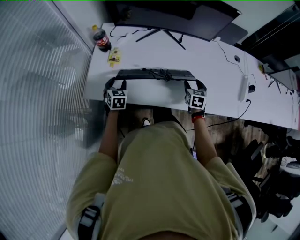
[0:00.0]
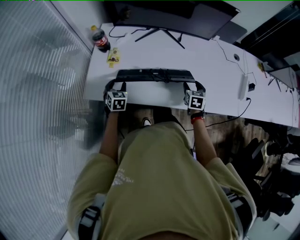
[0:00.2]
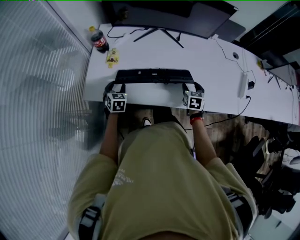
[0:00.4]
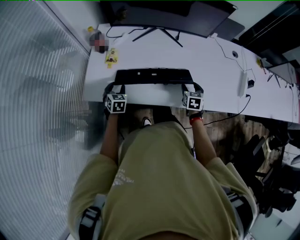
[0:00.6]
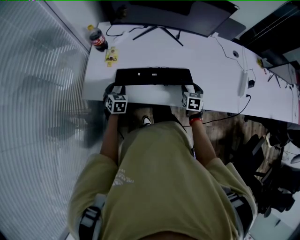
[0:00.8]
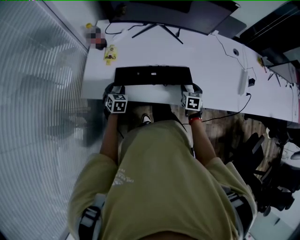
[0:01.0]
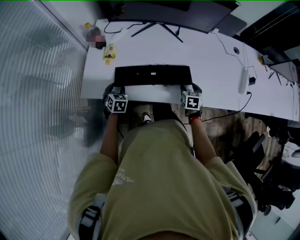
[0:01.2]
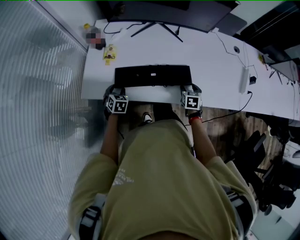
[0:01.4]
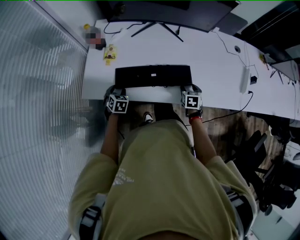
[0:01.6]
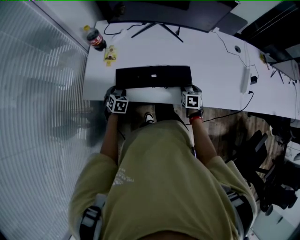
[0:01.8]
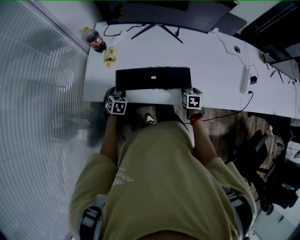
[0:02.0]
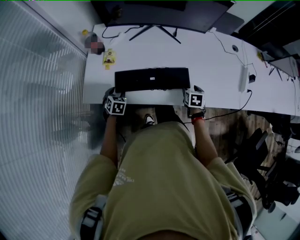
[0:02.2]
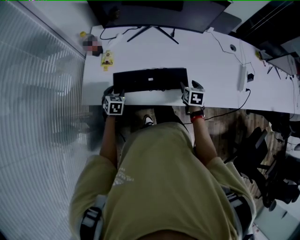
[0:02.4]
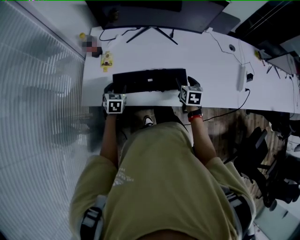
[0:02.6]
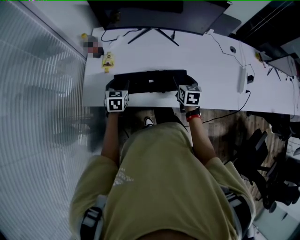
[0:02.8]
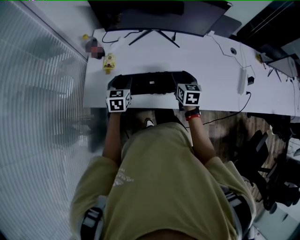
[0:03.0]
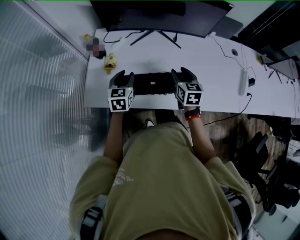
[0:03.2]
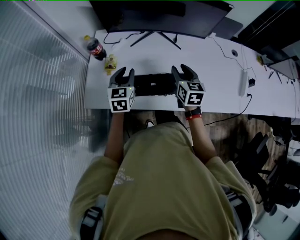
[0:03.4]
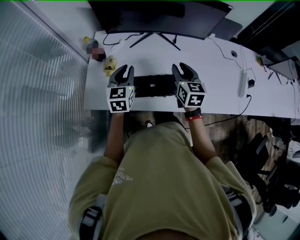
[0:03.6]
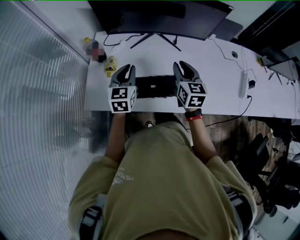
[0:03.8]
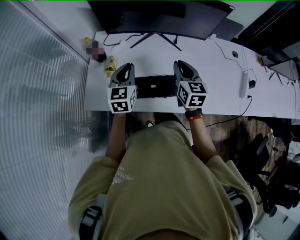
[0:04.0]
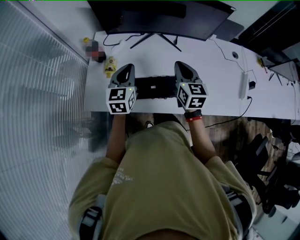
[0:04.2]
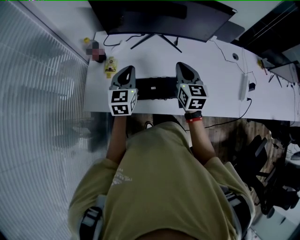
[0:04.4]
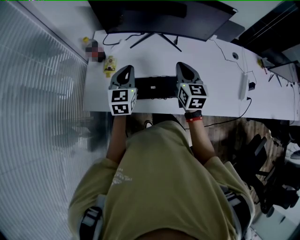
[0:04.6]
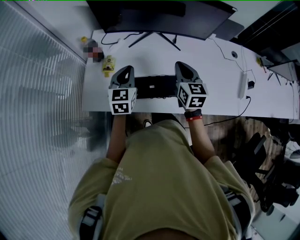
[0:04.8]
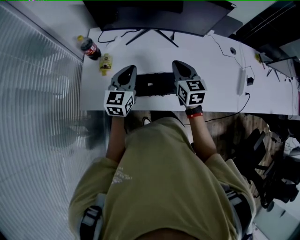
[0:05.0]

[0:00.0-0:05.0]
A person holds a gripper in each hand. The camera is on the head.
0:00.0 to 0:01.6: Both grippers travel together downward, roughly 10 cm.
0:01.6 to 0:03.4: The left gripper moves upward and forward, approximately 25 cm, and tilts its fingers roughly 30 degrees upward, while the right gripper goes some 25 cm upward and to the left, and swivels about 30 degrees.
0:03.4 to 0:05.0: The right gripper closes up.

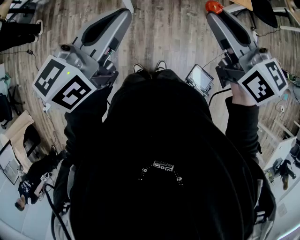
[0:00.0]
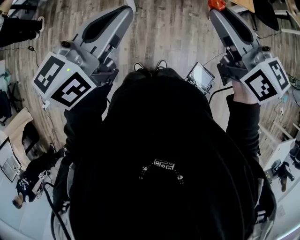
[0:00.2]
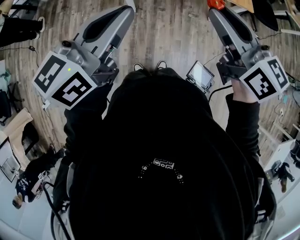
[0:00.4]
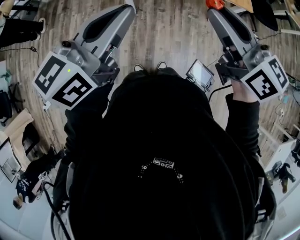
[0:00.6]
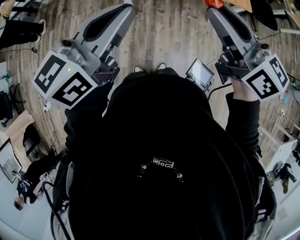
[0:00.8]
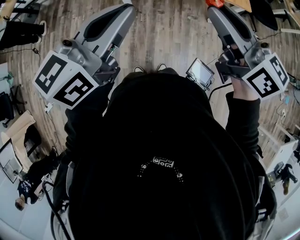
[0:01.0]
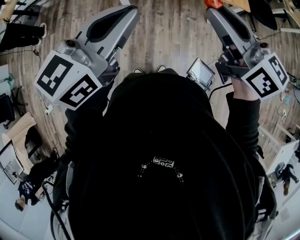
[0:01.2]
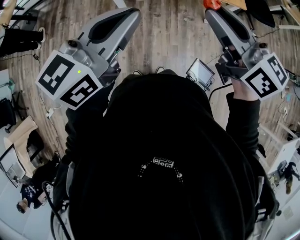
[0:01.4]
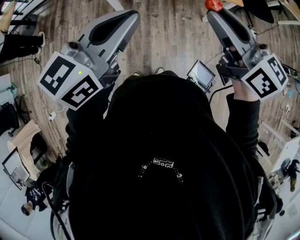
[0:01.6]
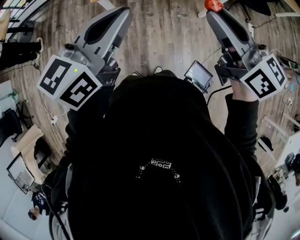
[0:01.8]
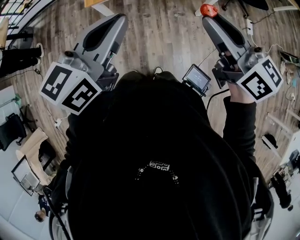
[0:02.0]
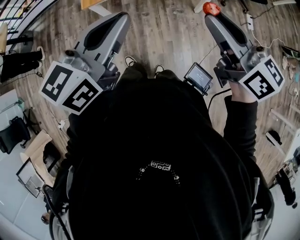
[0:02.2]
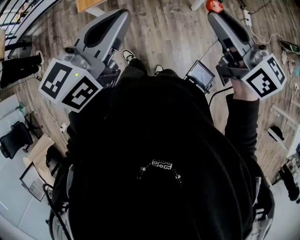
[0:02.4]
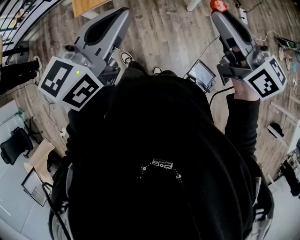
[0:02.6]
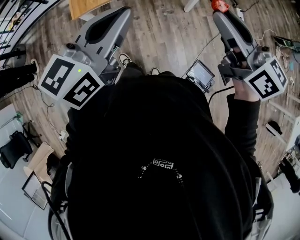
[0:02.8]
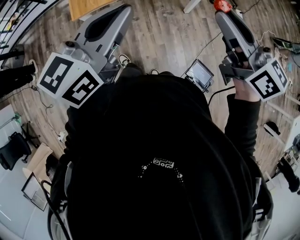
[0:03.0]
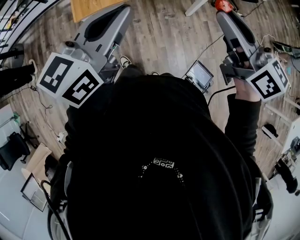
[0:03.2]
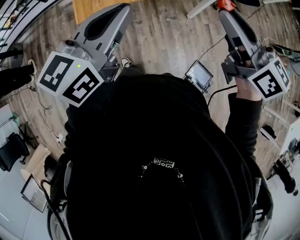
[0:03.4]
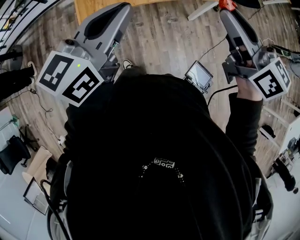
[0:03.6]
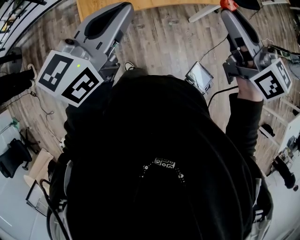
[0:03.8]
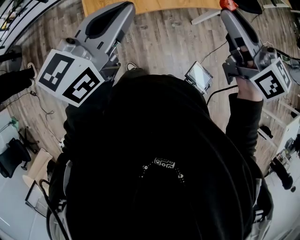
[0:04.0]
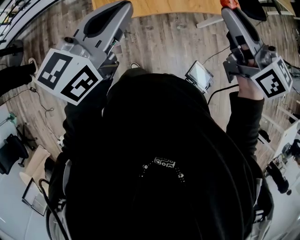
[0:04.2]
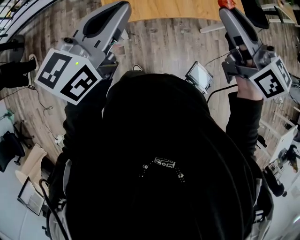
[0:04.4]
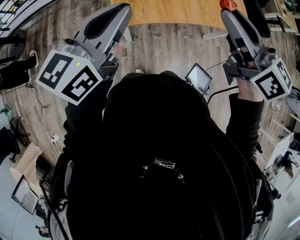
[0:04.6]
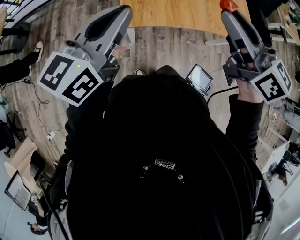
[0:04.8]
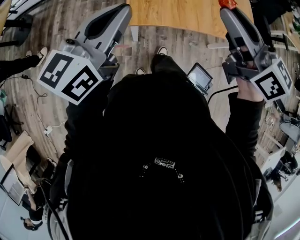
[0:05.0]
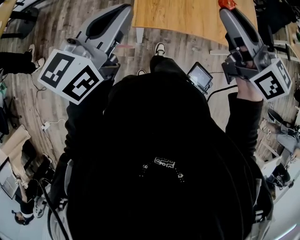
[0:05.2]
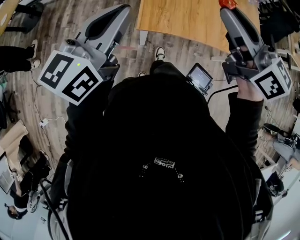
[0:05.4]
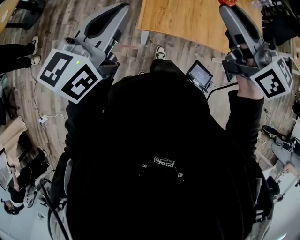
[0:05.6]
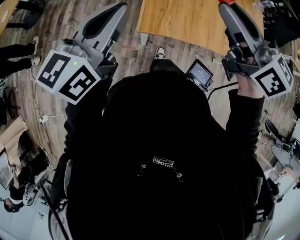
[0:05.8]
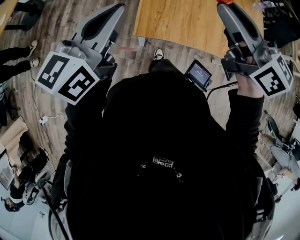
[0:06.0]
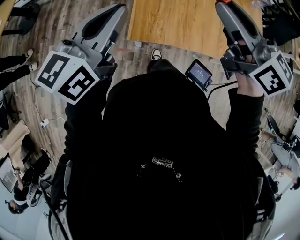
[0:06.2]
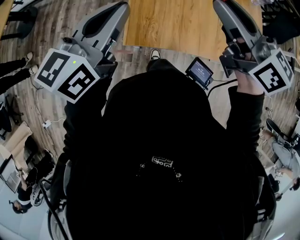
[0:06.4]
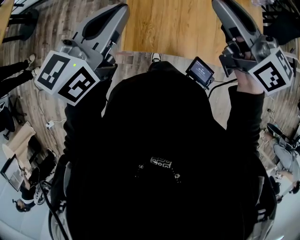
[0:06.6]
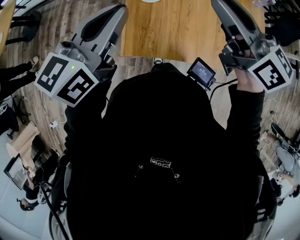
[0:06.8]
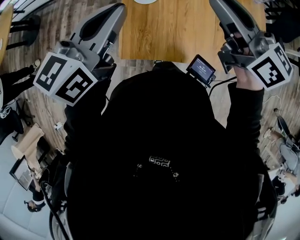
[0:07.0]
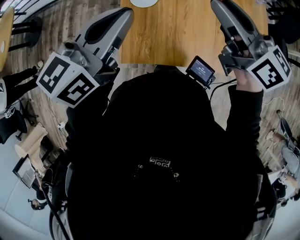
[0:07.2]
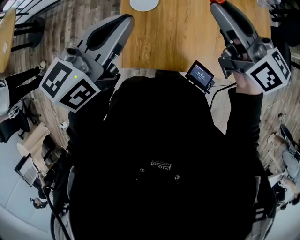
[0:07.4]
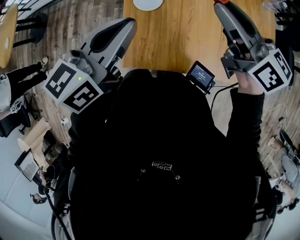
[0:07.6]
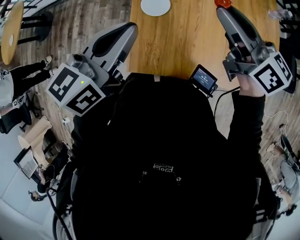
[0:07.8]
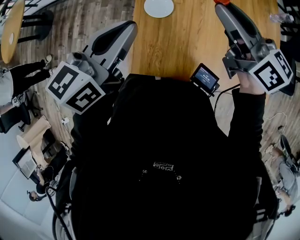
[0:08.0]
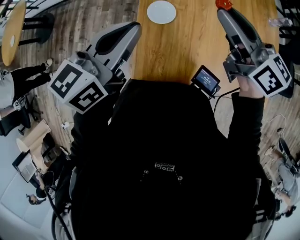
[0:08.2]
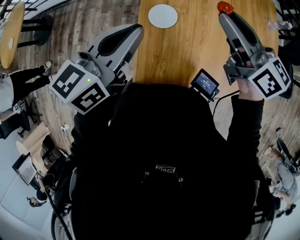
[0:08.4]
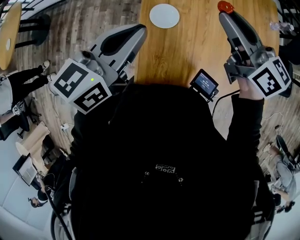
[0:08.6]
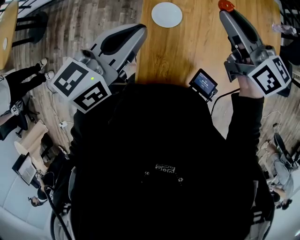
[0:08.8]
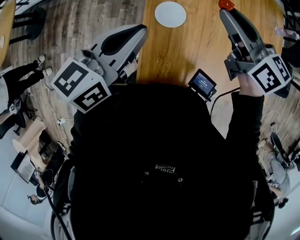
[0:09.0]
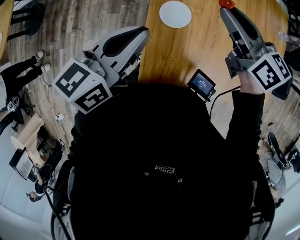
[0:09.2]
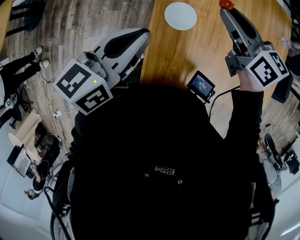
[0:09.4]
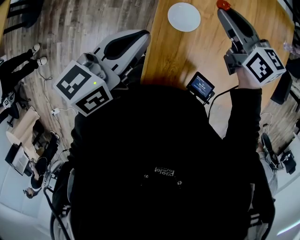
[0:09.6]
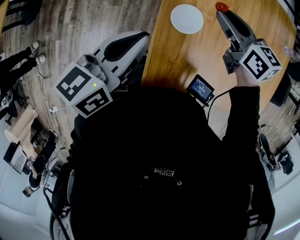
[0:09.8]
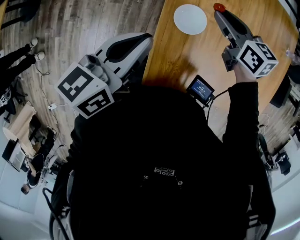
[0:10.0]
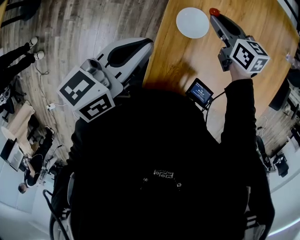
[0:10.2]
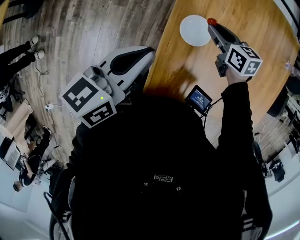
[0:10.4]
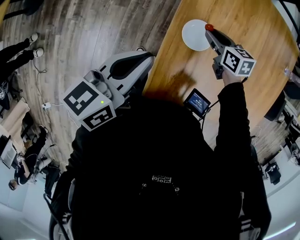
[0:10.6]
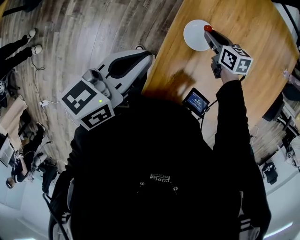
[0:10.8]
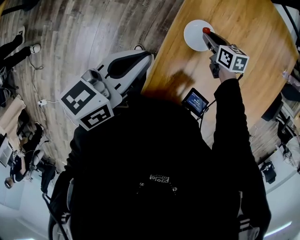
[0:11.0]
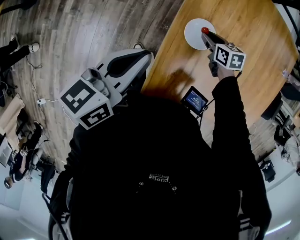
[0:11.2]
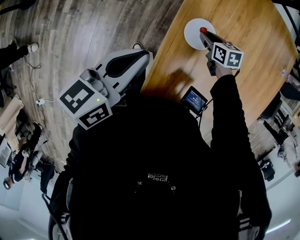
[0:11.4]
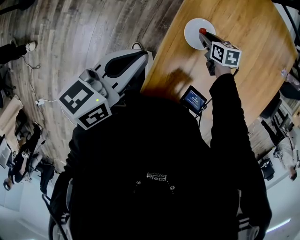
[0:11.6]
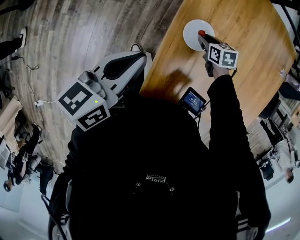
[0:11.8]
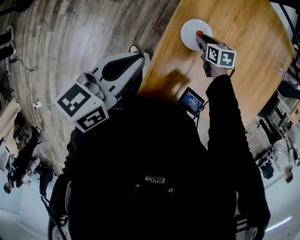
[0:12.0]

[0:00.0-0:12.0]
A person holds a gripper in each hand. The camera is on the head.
0:00.0 to 0:01.6: The grippers both shift to the right by approximately 10 cm.
0:01.6 to 0:03.0: The right gripper travels to the right by about 10 cm; the left gripper goes some 10 cm to the right and forward.
0:03.0 to 0:04.4: The grippers both shift to the left and forward by about 30 cm.
0:04.4 to 0:06.0: Both grippers move to the right, about 10 cm.
0:06.0 to 0:07.6: The right gripper is displaced to the right, forward and downward by some 10 cm, while the left gripper moves to the right, approximately 10 cm.
0:07.6 to 0:09.0: The right gripper shifts by about 5 cm.
0:09.0 to 0:10.4: The right gripper travels downward by some 20 cm, and rotates roughly 30 degrees. Meanwhile the left gripper is displaced downward by approximately 5 cm.
0:10.4 to 0:12.0: The right gripper shifts some 15 cm downward, and swivels some 20 degrees.

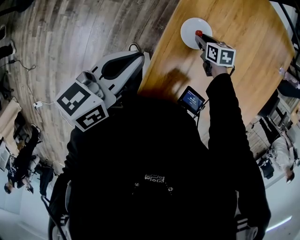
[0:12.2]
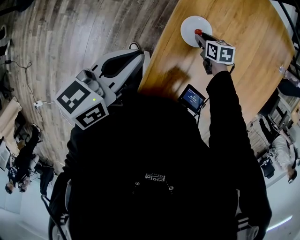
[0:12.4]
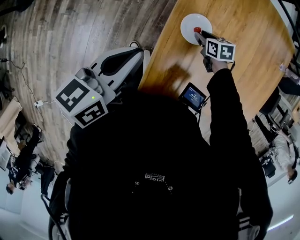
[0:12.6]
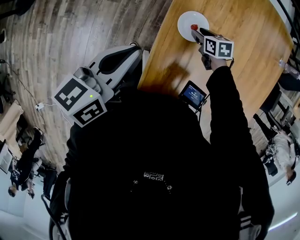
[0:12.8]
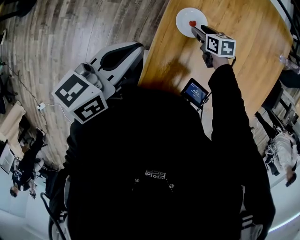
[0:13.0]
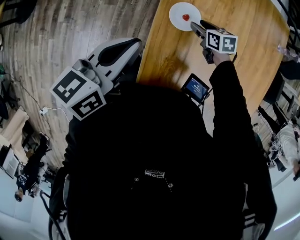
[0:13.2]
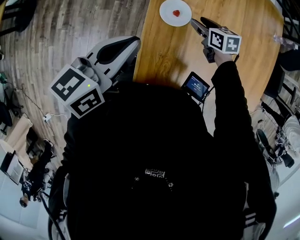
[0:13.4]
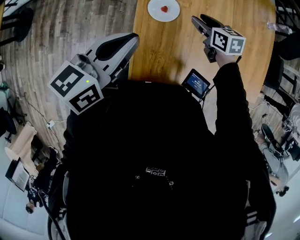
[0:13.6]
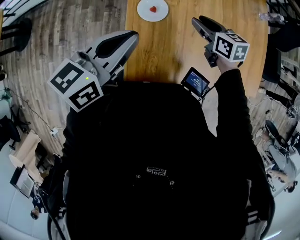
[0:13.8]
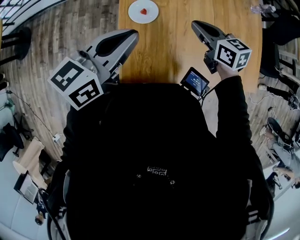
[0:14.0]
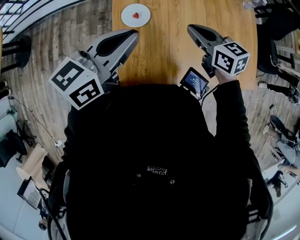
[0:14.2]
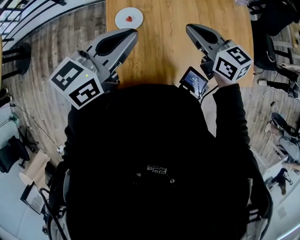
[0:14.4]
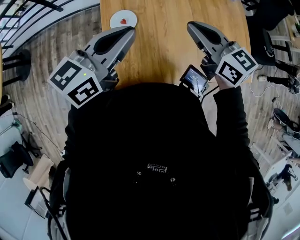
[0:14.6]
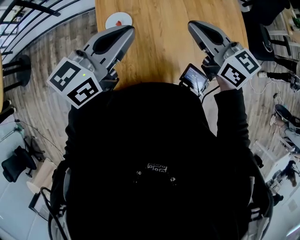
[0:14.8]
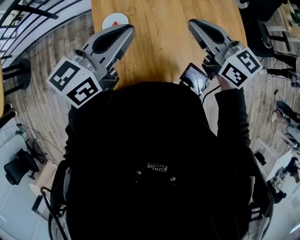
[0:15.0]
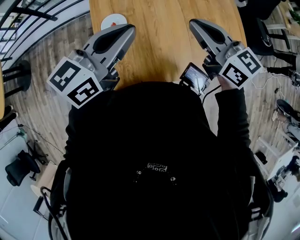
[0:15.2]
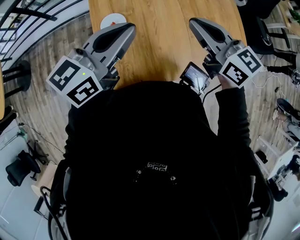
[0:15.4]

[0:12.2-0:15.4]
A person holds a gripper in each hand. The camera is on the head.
0:12.2 to 0:13.8: The left gripper travels to the right by about 5 cm, and rotates about 20 degrees. Meanwhile the right gripper is displaced upward by some 15 cm, and swivels approximately 30 degrees.
0:13.8 to 0:15.4: The right gripper travels upward and backward by approximately 20 cm, turns by approximately 20 degrees, and closes up. Meanwhile the left gripper moves to the right and upward, some 10 cm.

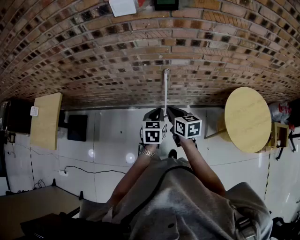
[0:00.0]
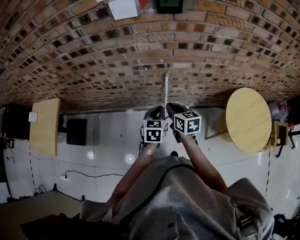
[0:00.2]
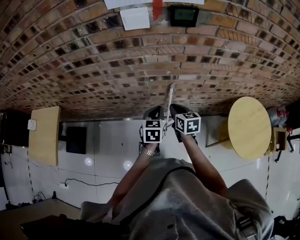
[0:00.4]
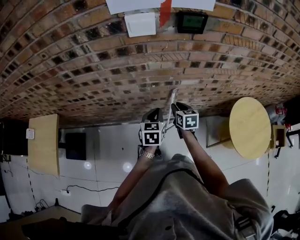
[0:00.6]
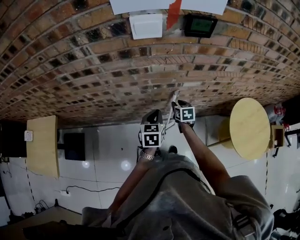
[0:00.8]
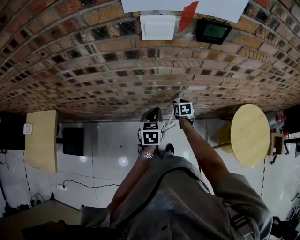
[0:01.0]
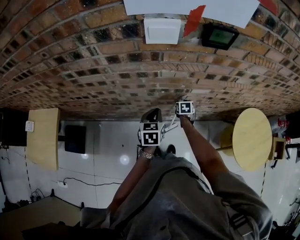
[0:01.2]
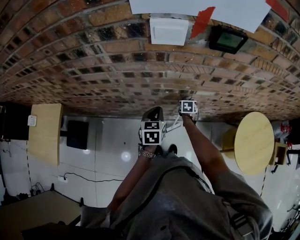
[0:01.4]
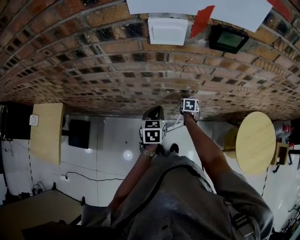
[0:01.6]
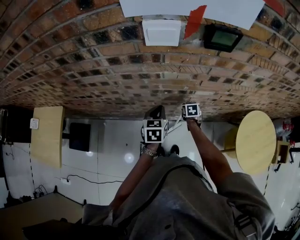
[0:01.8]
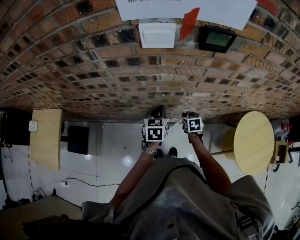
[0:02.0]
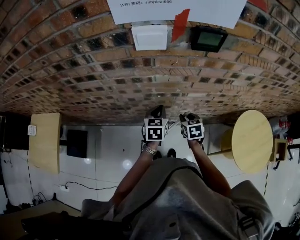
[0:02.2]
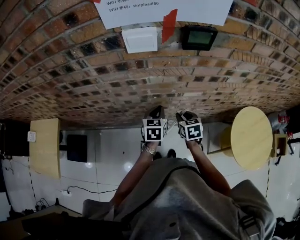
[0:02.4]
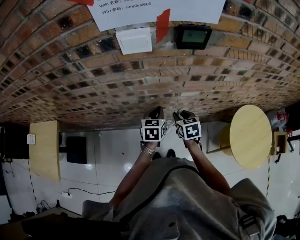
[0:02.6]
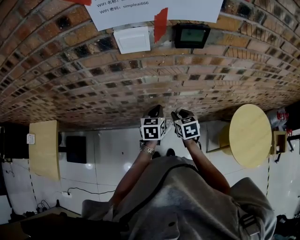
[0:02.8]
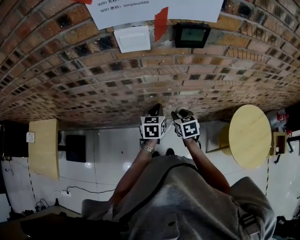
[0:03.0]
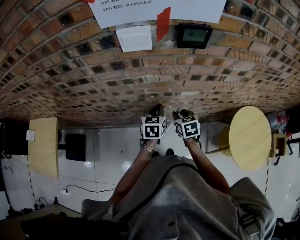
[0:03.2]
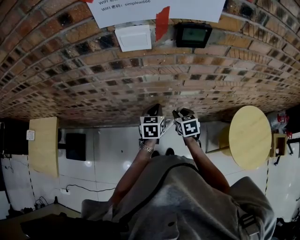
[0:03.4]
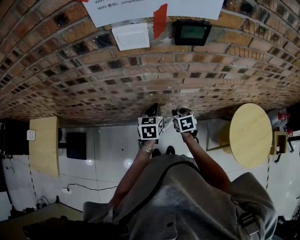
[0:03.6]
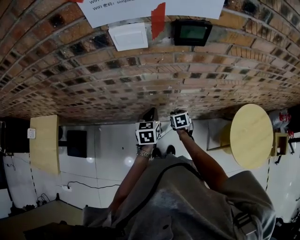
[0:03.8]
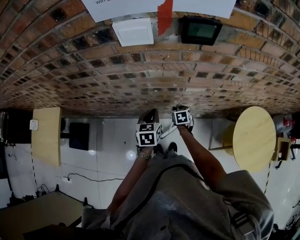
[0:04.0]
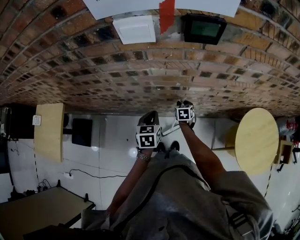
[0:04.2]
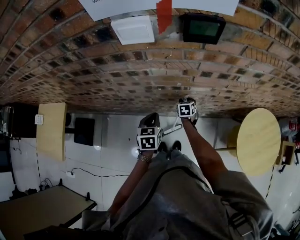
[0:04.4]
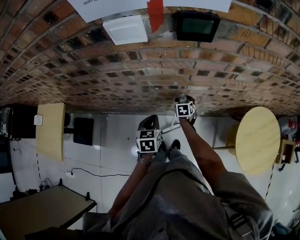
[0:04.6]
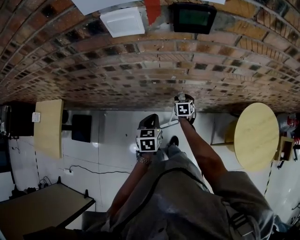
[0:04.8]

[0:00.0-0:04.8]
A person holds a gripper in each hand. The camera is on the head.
0:00.0 to 0:01.6: The right gripper is displaced forward and downward by about 35 cm, changes its angle by roughly 40 degrees, and opens its fingers. The left gripper is displaced forward and to the left by about 25 cm.
0:01.6 to 0:03.2: The left gripper is displaced to the right by roughly 10 cm; the right gripper shifts approximately 20 cm upward and backward, and turns by about 20 degrees.
0:03.2 to 0:04.8: The right gripper goes some 20 cm downward and forward, and opens. The left gripper moves backward and downward, approximately 10 cm.
